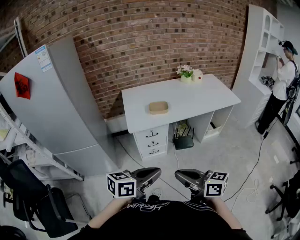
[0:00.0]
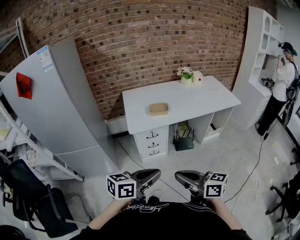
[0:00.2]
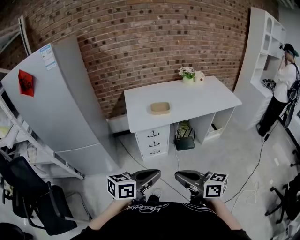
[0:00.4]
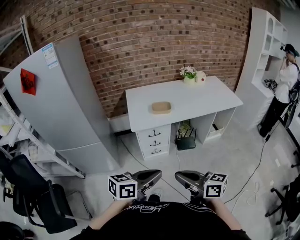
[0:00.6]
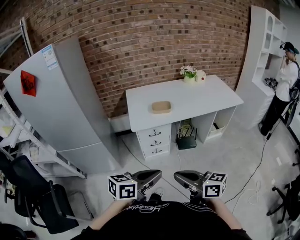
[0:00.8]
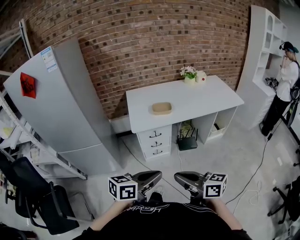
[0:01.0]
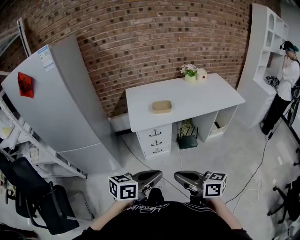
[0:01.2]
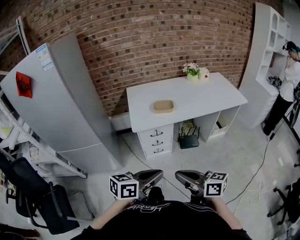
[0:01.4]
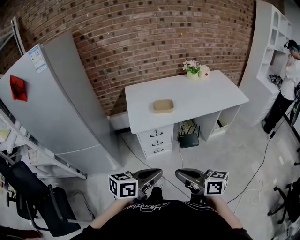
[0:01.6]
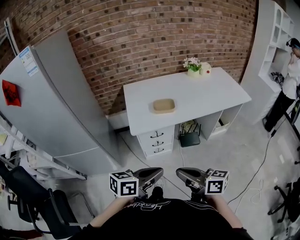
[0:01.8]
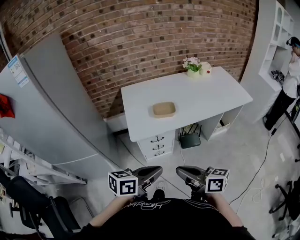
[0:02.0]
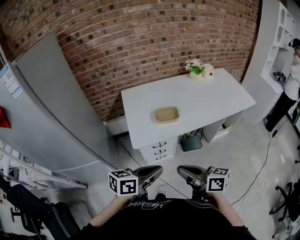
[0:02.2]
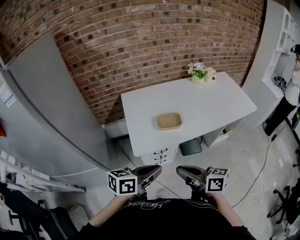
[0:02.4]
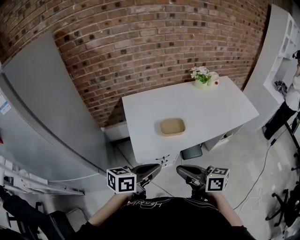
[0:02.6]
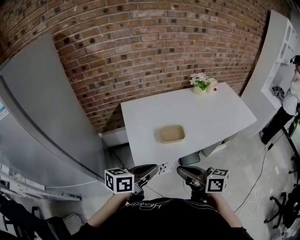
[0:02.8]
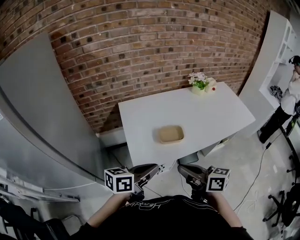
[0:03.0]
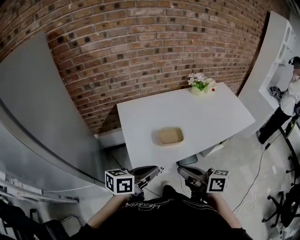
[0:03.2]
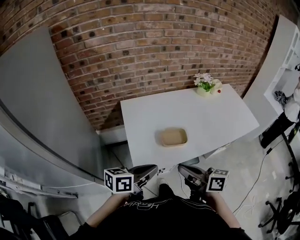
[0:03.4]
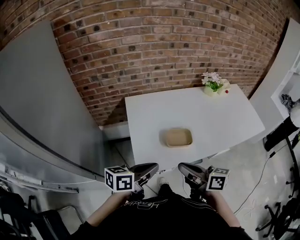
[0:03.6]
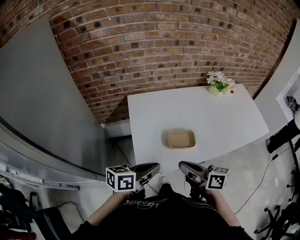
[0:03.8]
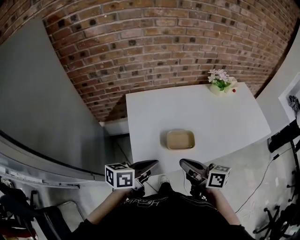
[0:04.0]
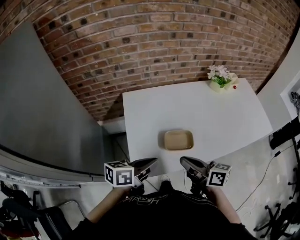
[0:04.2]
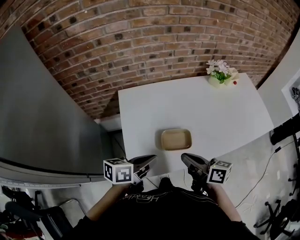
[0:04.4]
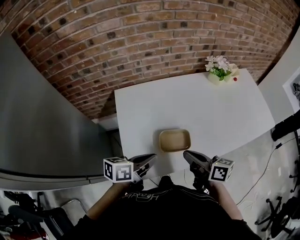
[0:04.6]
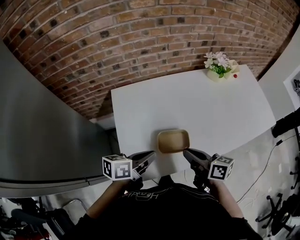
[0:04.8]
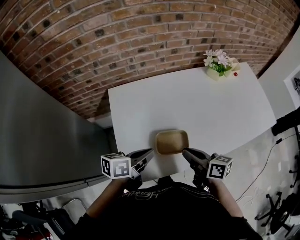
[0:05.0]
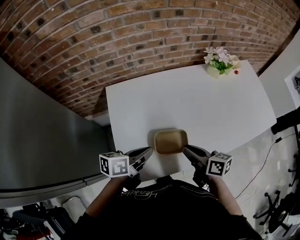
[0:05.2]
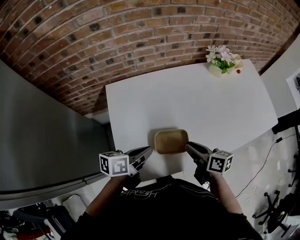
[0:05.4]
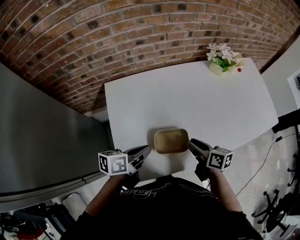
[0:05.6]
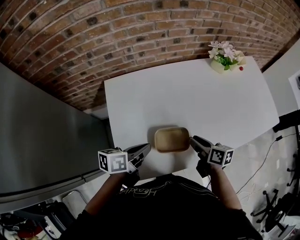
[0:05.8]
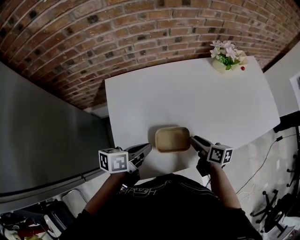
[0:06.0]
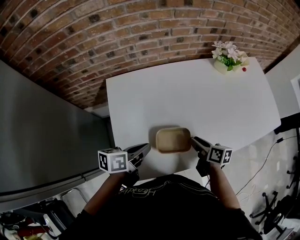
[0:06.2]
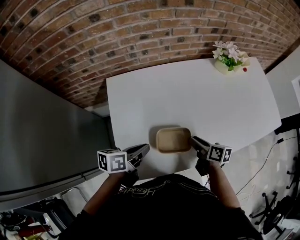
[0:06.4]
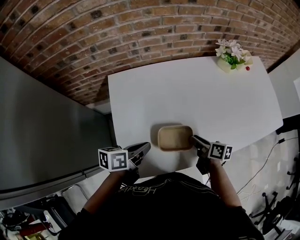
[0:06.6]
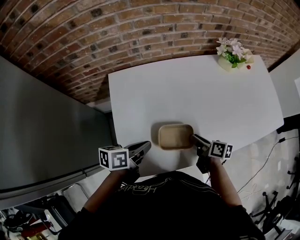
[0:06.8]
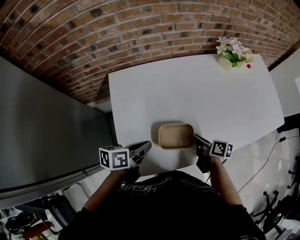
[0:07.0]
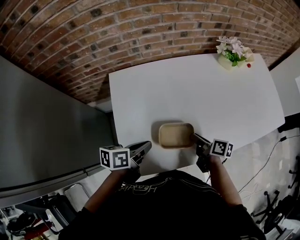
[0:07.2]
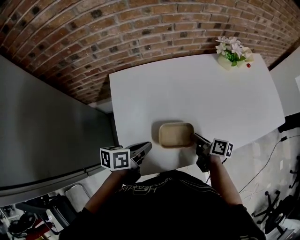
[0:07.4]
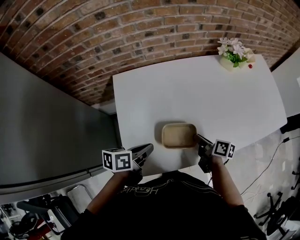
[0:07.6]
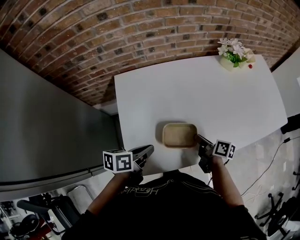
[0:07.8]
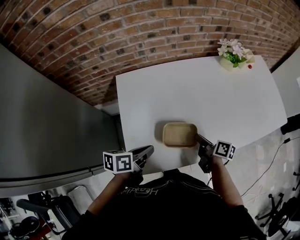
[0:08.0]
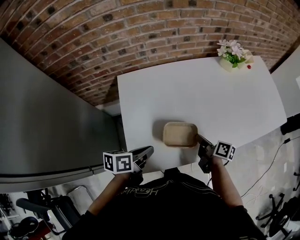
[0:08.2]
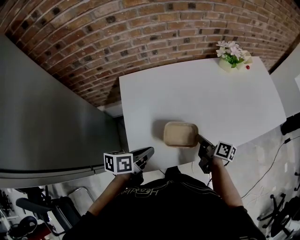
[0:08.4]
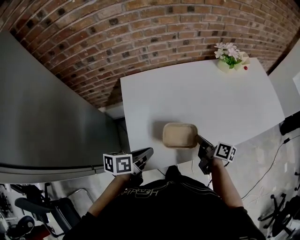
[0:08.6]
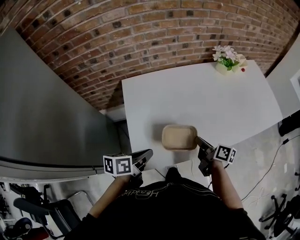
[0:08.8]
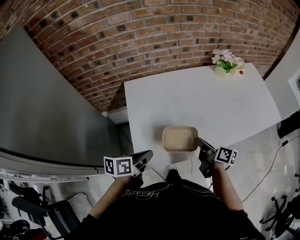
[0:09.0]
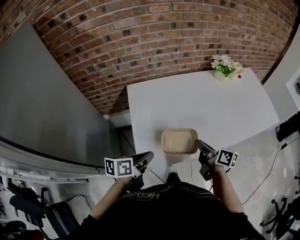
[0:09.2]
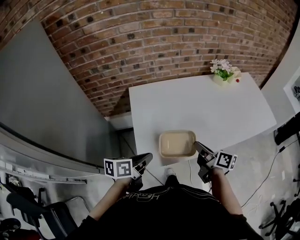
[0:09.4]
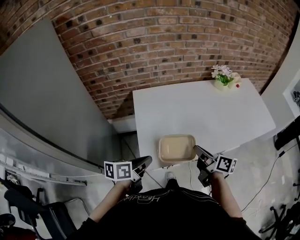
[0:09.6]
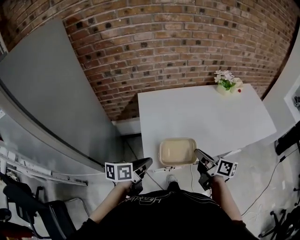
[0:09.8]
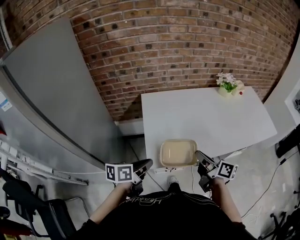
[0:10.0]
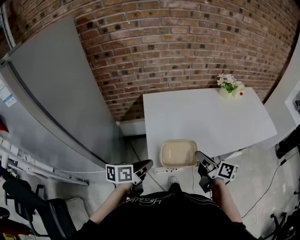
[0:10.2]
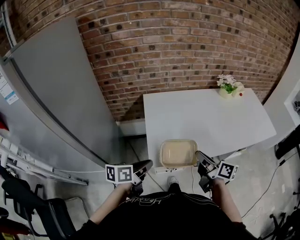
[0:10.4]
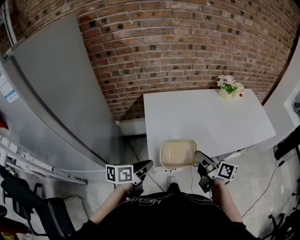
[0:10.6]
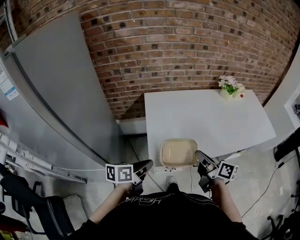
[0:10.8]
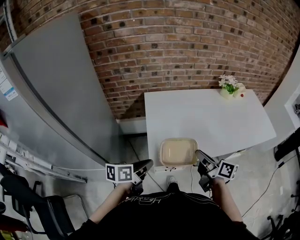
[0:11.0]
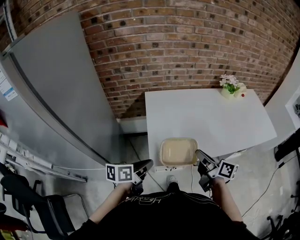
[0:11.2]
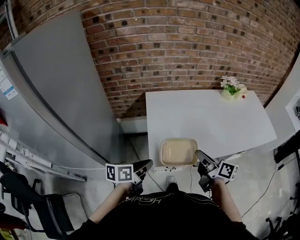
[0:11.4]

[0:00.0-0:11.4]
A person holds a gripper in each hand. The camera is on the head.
0:00.0 to 0:01.4: There are only small adjustments of the grippers.
0:01.4 to 0:02.8: The grippers both shift forward by approximately 30 cm.
0:02.8 to 0:04.2: The two grippers go some 15 cm forward.
0:04.2 to 0:05.6: The left gripper moves forward and downward, about 15 cm. The right gripper is displaced downward, forward and to the right by roughly 20 cm, rotates approximately 20 degrees, and opens its fingers.
0:05.6 to 0:07.2: The right gripper travels downward by about 5 cm.
0:07.2 to 0:08.6: The right gripper changes place by about 5 cm, while the left gripper heads backward, covering about 5 cm.
0:08.6 to 0:10.0: The left gripper goes roughly 15 cm backward, upward and to the left. Meanwhile the right gripper shifts some 20 cm upward, backward and to the left, and turns by roughly 20 degrees.
0:10.0 to 0:11.4: The grippers stay close to where they were, moving slightly.

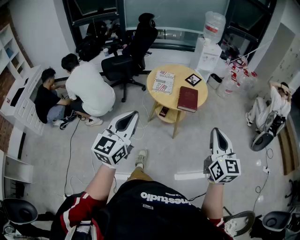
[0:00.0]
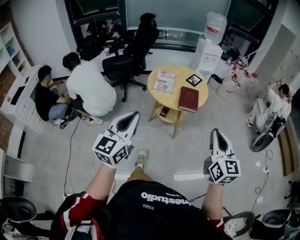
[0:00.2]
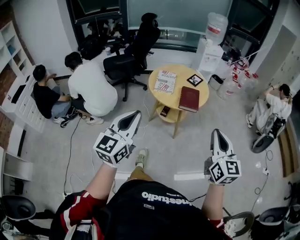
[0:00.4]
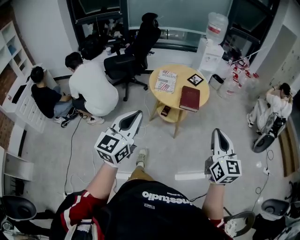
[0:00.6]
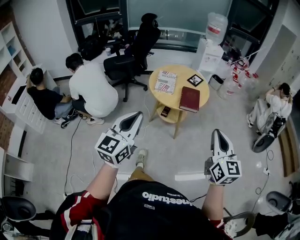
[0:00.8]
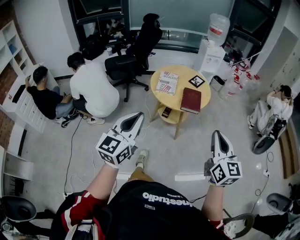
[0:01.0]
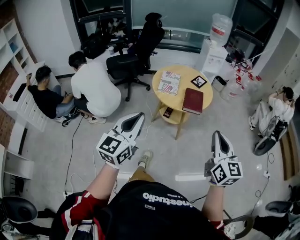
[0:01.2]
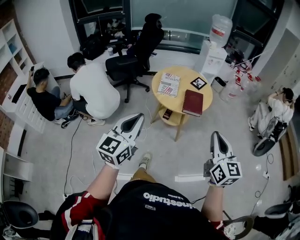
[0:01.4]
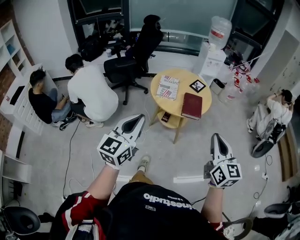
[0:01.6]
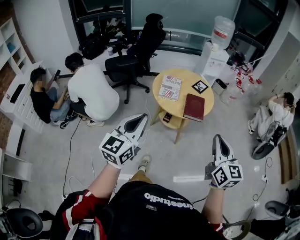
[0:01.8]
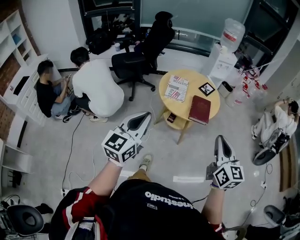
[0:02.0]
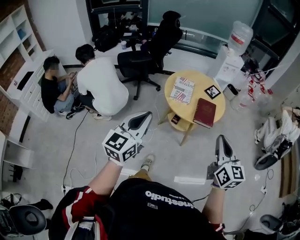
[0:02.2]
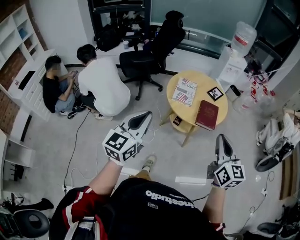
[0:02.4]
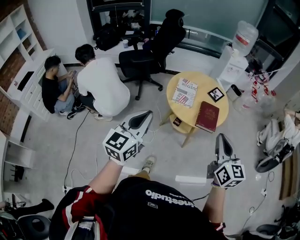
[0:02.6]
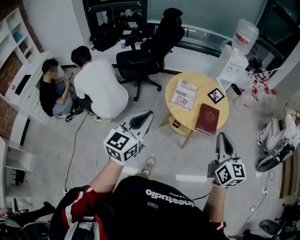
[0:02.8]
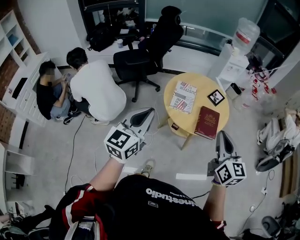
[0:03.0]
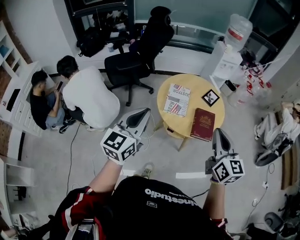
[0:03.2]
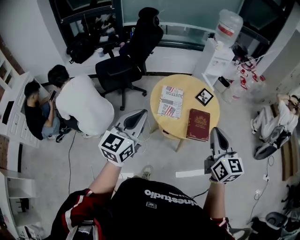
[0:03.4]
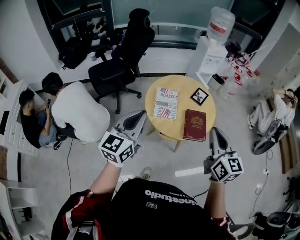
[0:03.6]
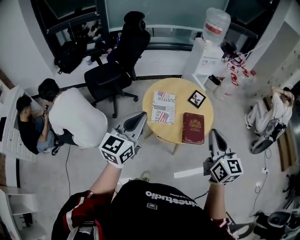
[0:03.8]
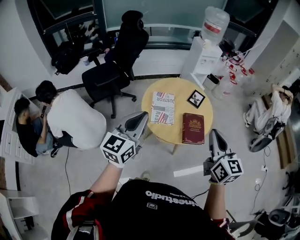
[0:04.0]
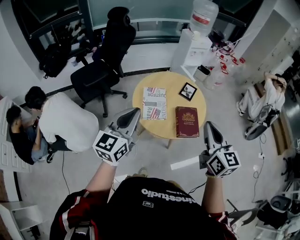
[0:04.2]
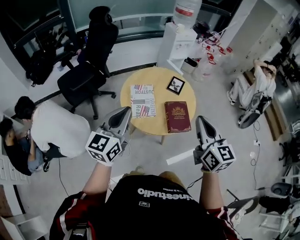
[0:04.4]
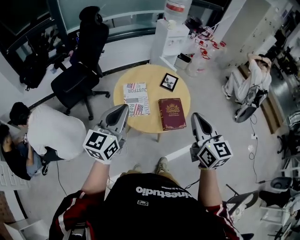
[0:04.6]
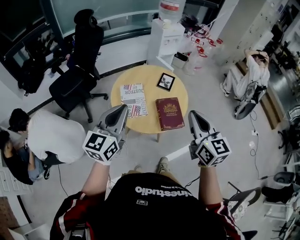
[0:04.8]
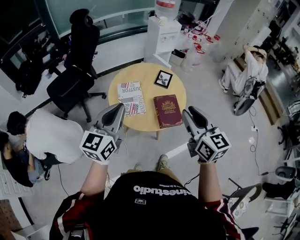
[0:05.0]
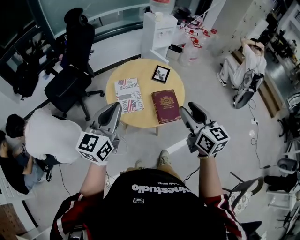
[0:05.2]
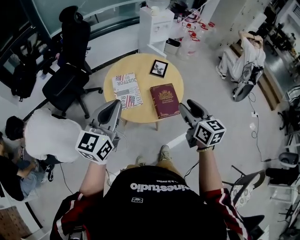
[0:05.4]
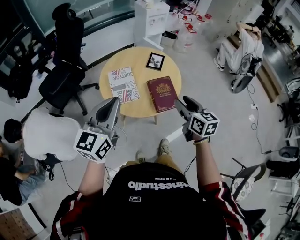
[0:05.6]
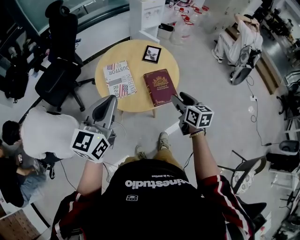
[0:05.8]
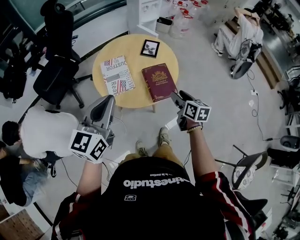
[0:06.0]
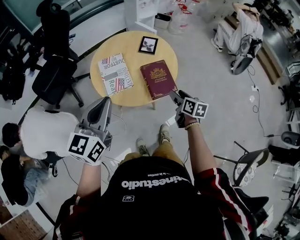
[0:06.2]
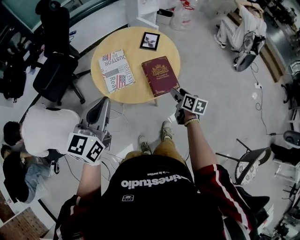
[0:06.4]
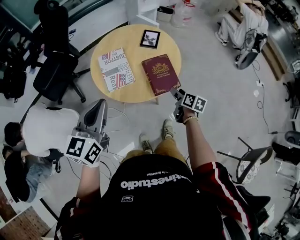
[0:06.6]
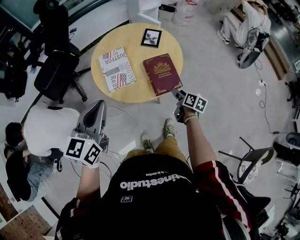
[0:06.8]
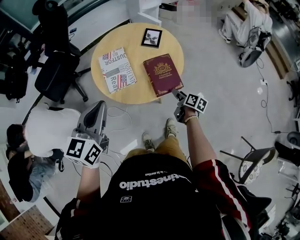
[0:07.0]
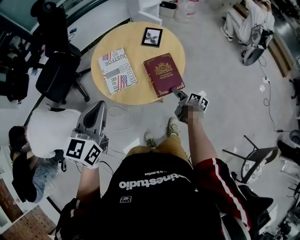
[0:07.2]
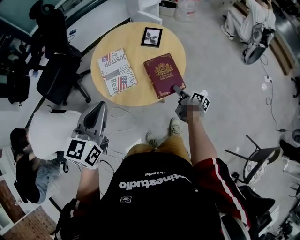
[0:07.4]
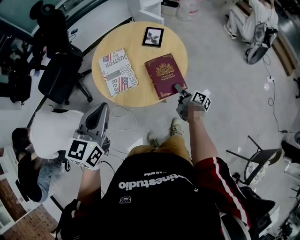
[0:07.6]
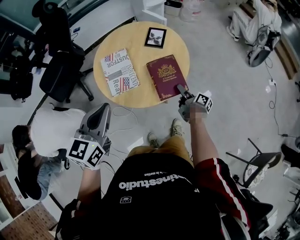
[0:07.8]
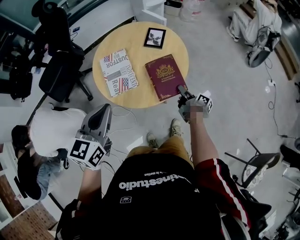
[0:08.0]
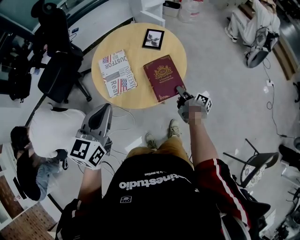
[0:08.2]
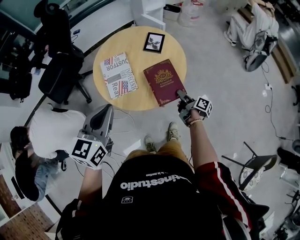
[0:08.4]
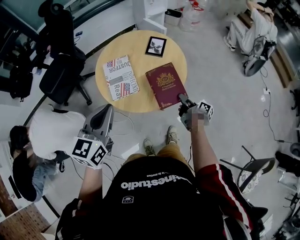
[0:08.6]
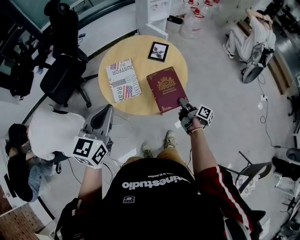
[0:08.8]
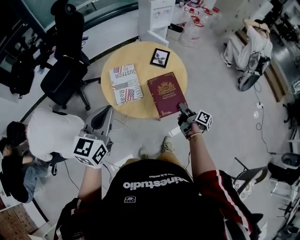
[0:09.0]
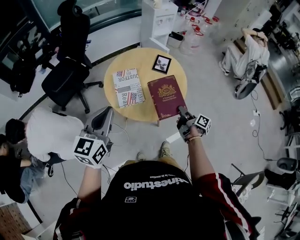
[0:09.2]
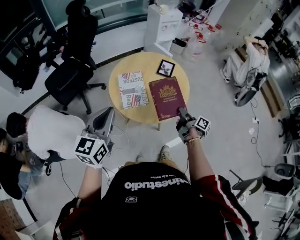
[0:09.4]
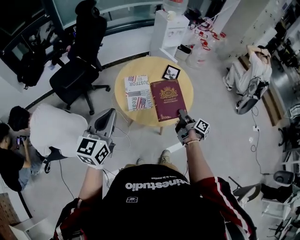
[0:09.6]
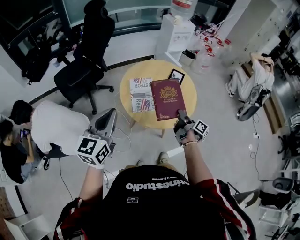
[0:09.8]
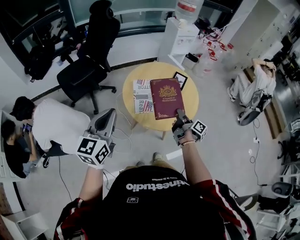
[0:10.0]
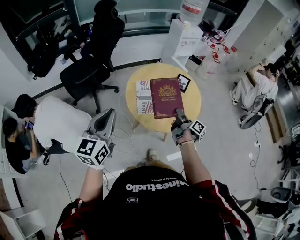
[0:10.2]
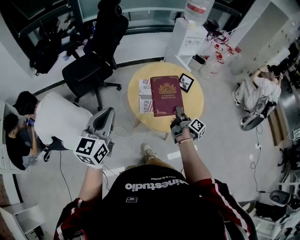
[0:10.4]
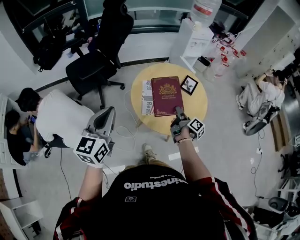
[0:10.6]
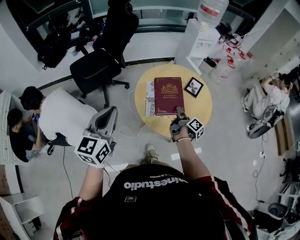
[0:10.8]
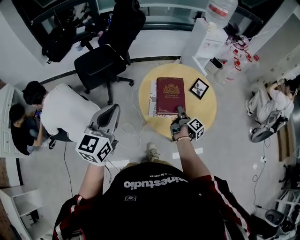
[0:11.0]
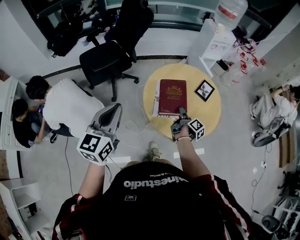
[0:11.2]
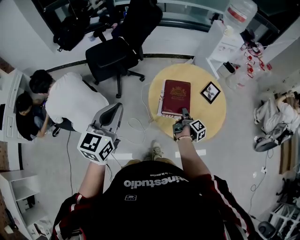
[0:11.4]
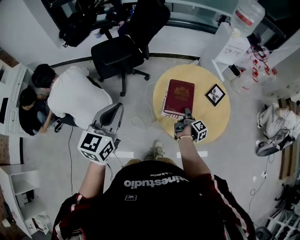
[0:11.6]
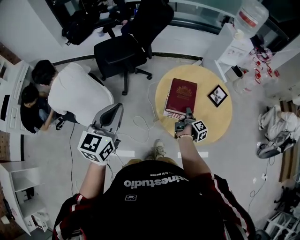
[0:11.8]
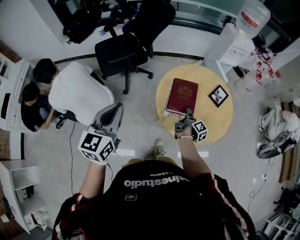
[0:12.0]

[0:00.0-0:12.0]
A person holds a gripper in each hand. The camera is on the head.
0:00.0 to 0:01.6: The grippers make only small movements.
0:01.6 to 0:03.0: Both grippers move forward, about 20 cm.
0:03.0 to 0:04.4: The right gripper moves forward, some 10 cm, while the left gripper heads forward, covering some 15 cm.
0:04.4 to 0:06.0: The left gripper travels to the right by some 5 cm. The right gripper heads downward, covering about 25 cm, rotates about 30 degrees, and opens up.
0:06.0 to 0:07.6: The right gripper moves downward, roughly 20 cm, and rotates around the line of its fingers by roughly 50 degrees, clockwise from behind, while the left gripper shifts roughly 5 cm downward.
0:07.6 to 0:09.0: The right gripper shifts about 10 cm upward.
0:09.0 to 0:10.4: The right gripper goes about 20 cm to the left, upward and forward, while the left gripper shifts roughly 15 cm to the left.
0:10.4 to 0:12.0: The right gripper moves downward, forward and to the left, about 15 cm; the left gripper heads to the left, covering about 5 cm.
